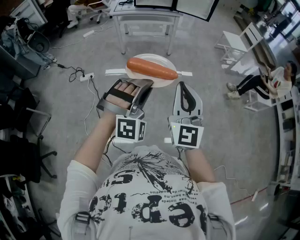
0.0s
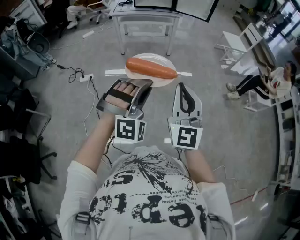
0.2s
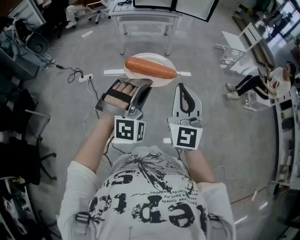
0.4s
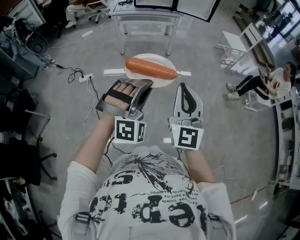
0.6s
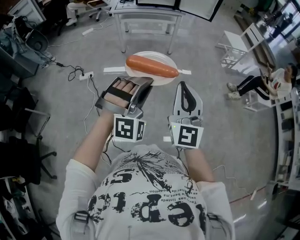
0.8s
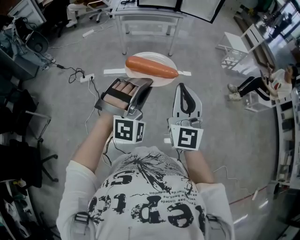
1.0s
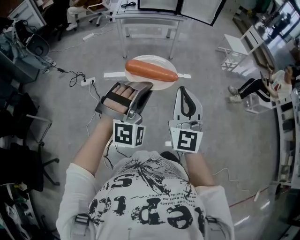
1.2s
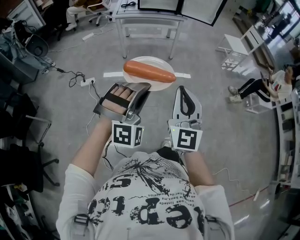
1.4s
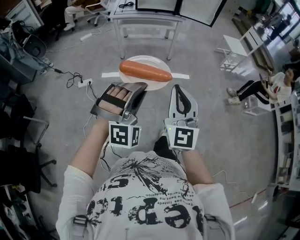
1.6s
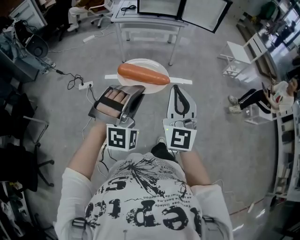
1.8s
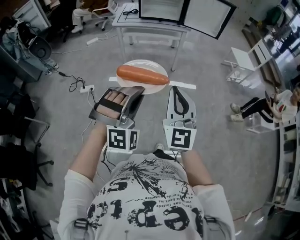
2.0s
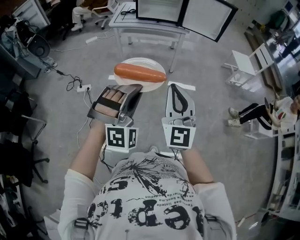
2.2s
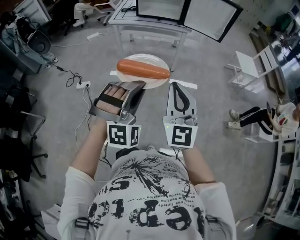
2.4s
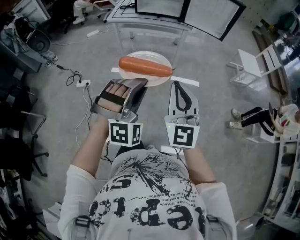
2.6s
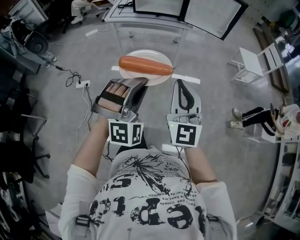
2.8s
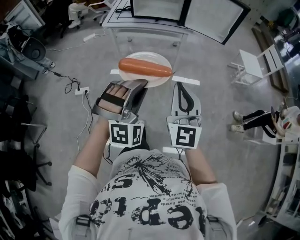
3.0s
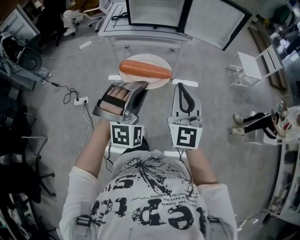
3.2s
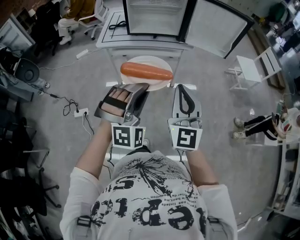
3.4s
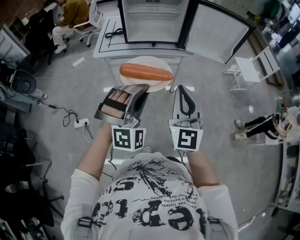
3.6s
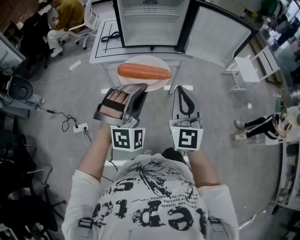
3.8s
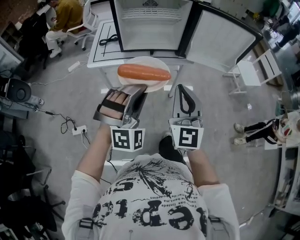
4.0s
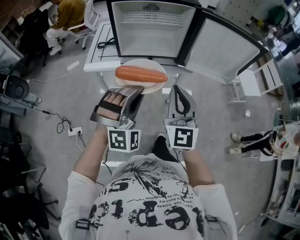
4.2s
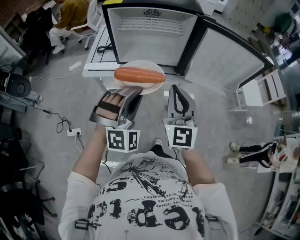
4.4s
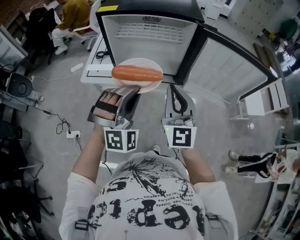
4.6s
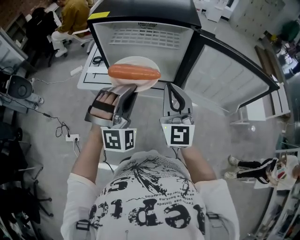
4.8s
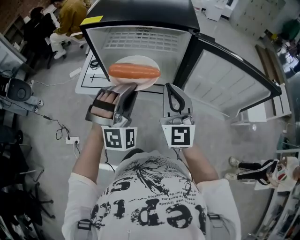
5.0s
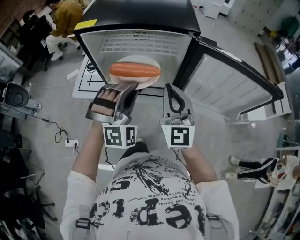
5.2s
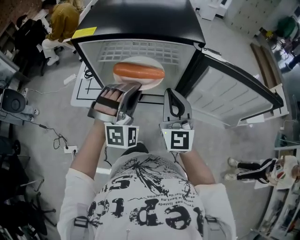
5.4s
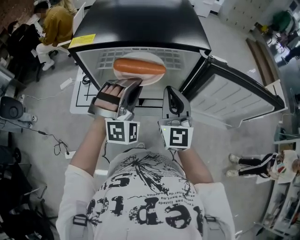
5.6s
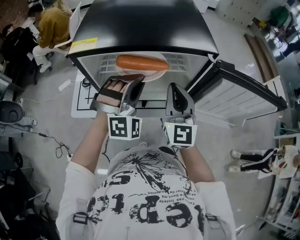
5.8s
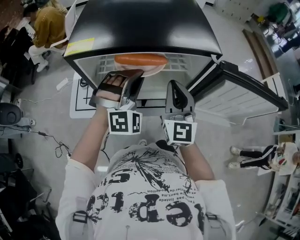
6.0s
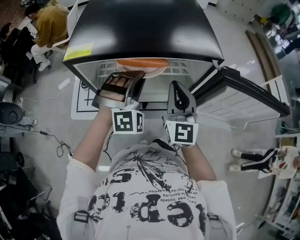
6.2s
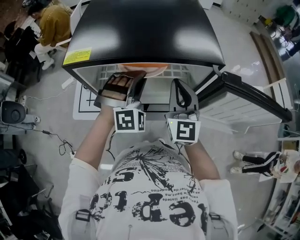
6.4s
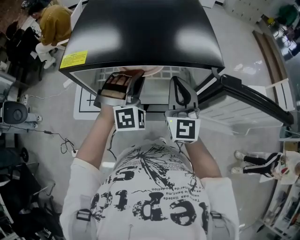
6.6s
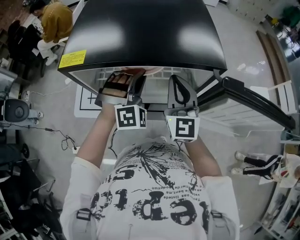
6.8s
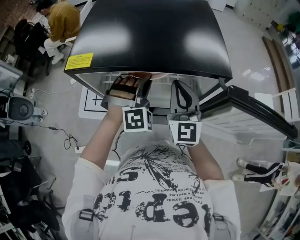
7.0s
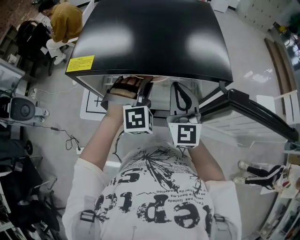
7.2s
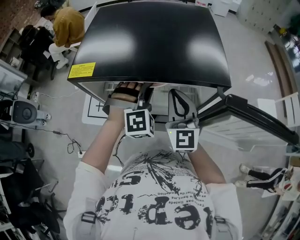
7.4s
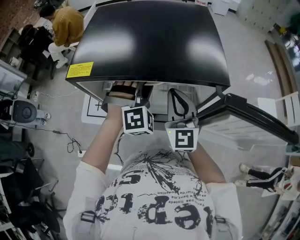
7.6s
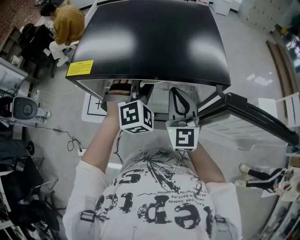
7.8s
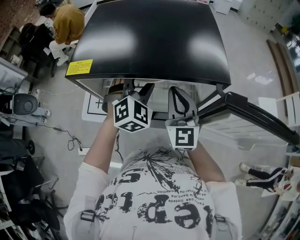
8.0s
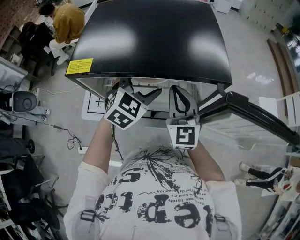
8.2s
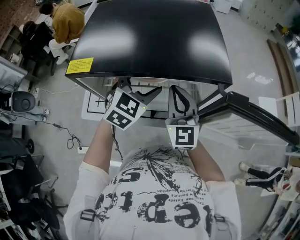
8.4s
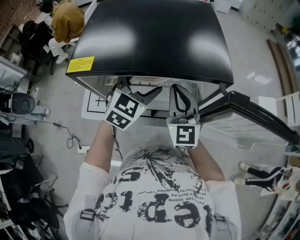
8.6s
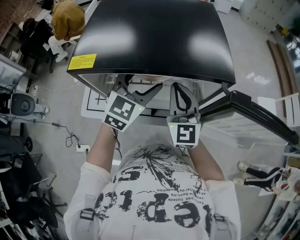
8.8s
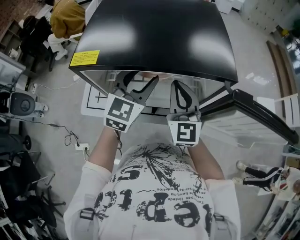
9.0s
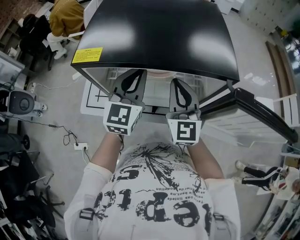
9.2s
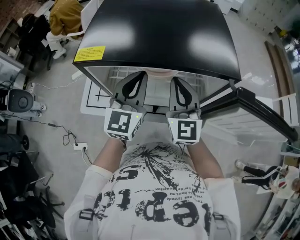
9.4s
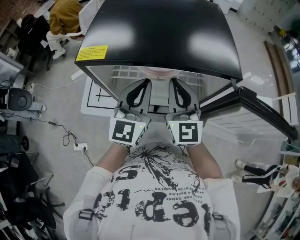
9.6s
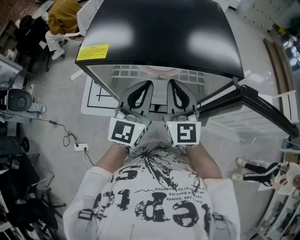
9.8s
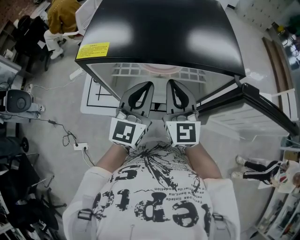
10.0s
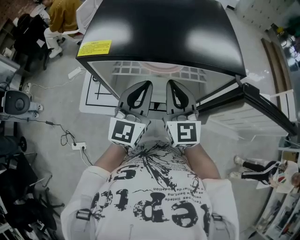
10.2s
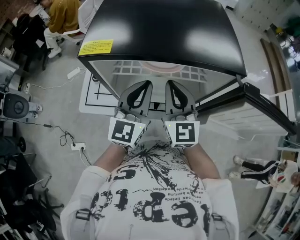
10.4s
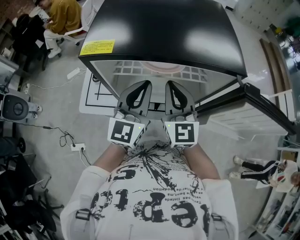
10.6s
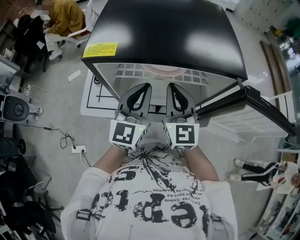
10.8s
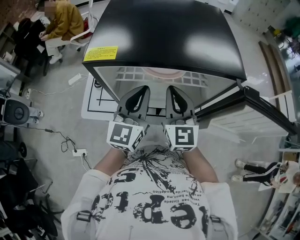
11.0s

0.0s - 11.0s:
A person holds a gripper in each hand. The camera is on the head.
0.0s - 1.6s: Both grippers move to the left and forward, roughly 10 cm.
1.6s - 3.2s: Both grippers are carried forward, about 40 cm.
3.2s - 4.8s: Both grippers are carried forward, roughly 50 cm.
4.8s - 6.2s: The two grippers go about 20 cm forward.
6.2s - 7.8s: The right gripper moves about 5 cm. Meanwhile the left gripper shifts about 5 cm forward, and opens up.
7.8s - 9.4s: The left gripper moves upward and to the left, about 10 cm, twists roughly 60 degrees counterclockwise, seen from behind, and closes up.
9.4s - 11.0s: There are only small adjustments of the grippers.

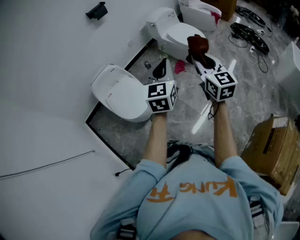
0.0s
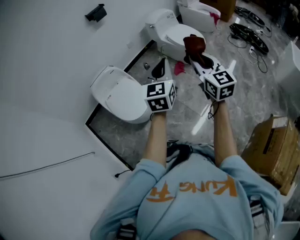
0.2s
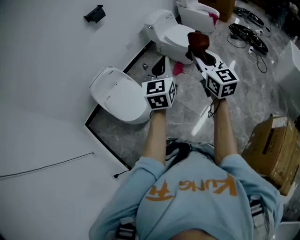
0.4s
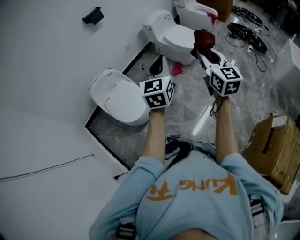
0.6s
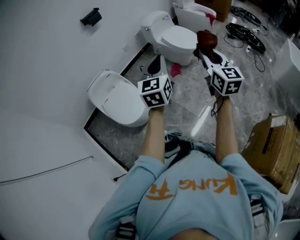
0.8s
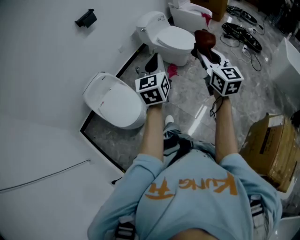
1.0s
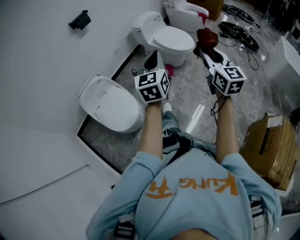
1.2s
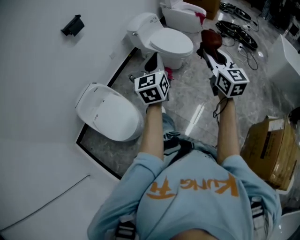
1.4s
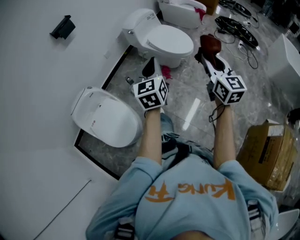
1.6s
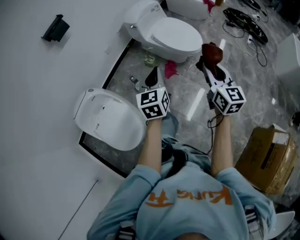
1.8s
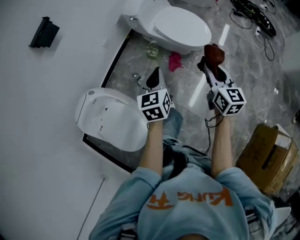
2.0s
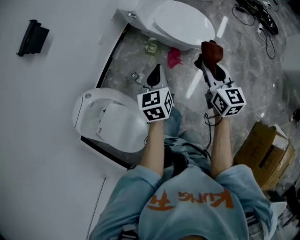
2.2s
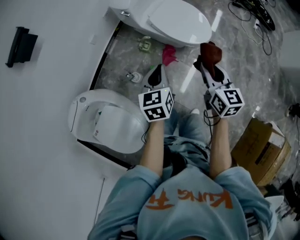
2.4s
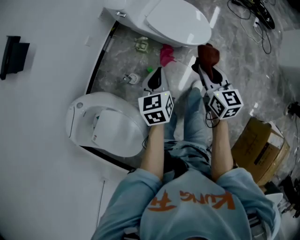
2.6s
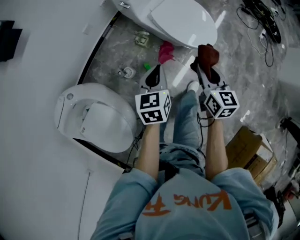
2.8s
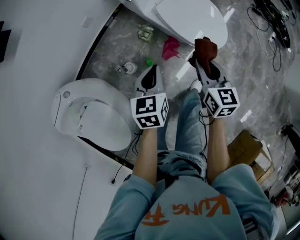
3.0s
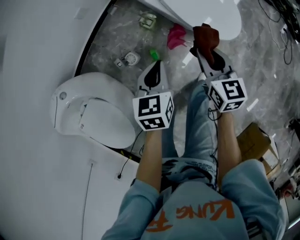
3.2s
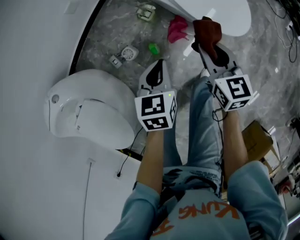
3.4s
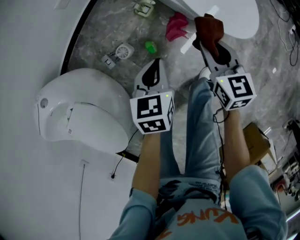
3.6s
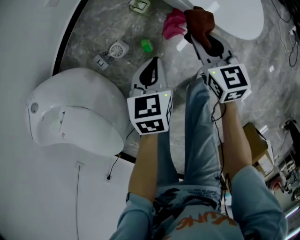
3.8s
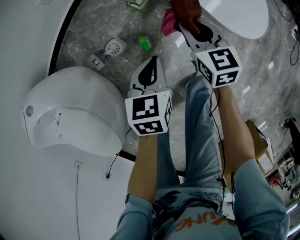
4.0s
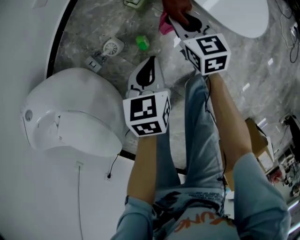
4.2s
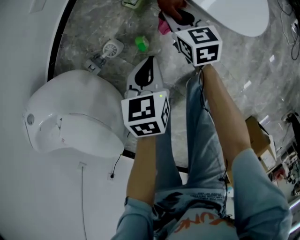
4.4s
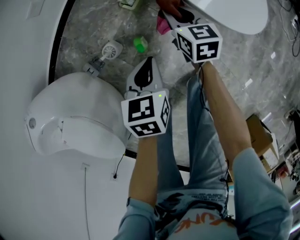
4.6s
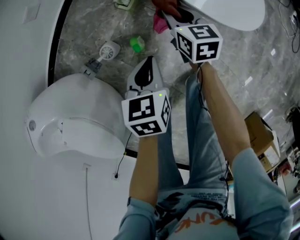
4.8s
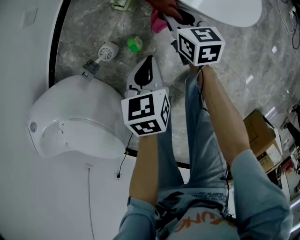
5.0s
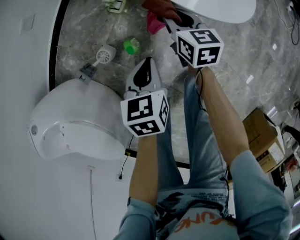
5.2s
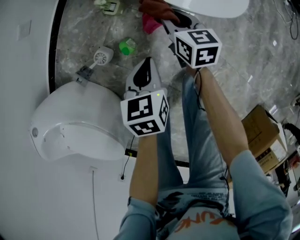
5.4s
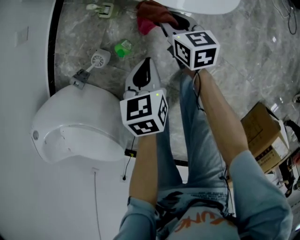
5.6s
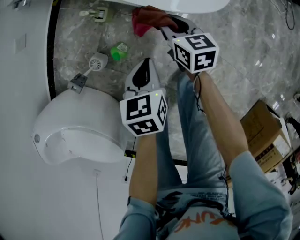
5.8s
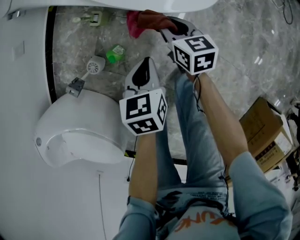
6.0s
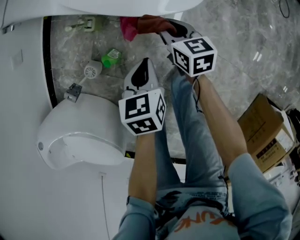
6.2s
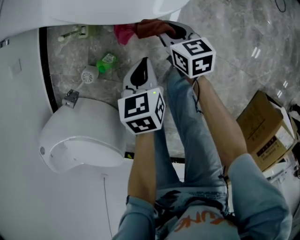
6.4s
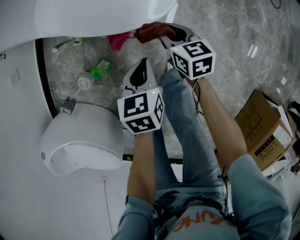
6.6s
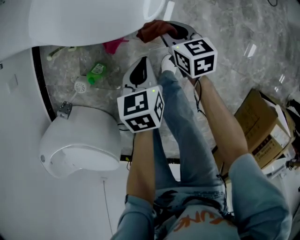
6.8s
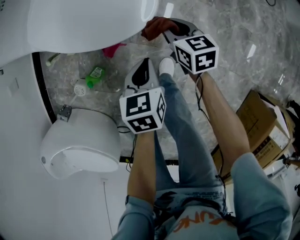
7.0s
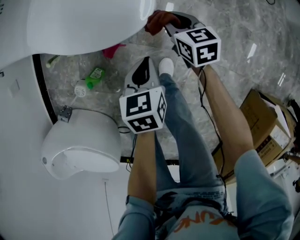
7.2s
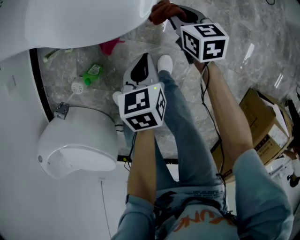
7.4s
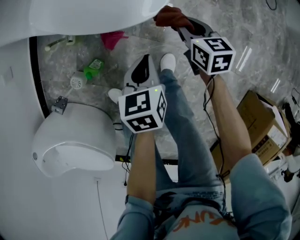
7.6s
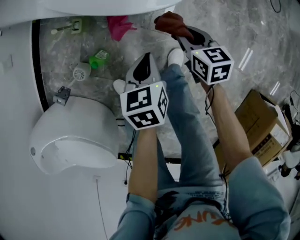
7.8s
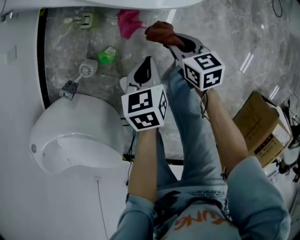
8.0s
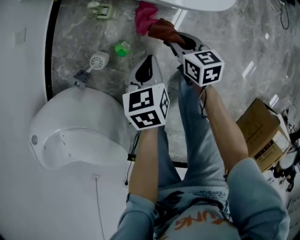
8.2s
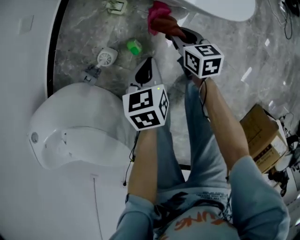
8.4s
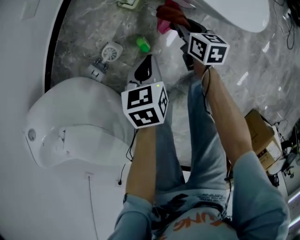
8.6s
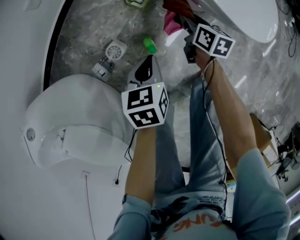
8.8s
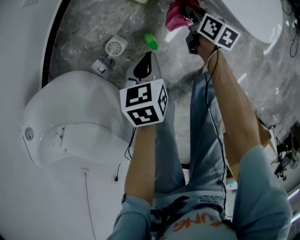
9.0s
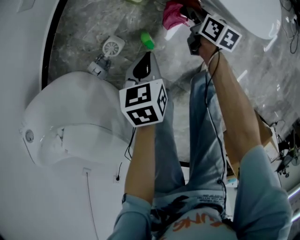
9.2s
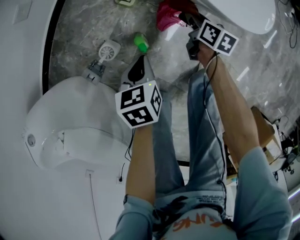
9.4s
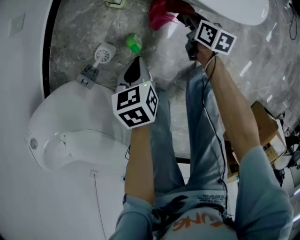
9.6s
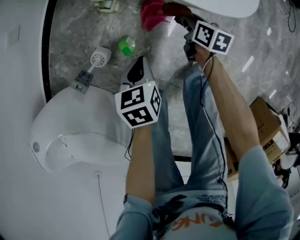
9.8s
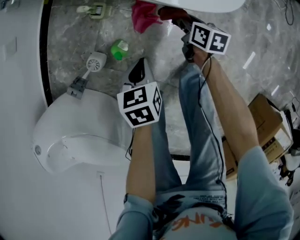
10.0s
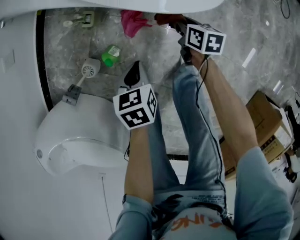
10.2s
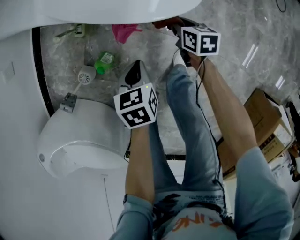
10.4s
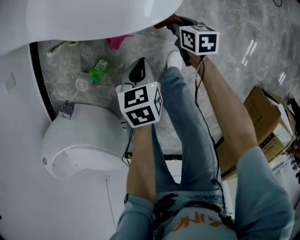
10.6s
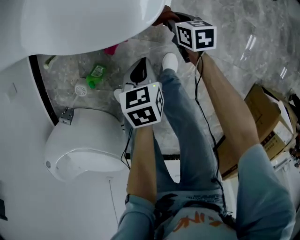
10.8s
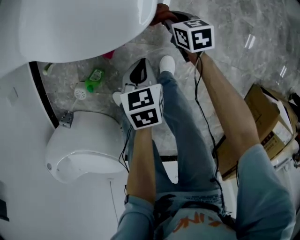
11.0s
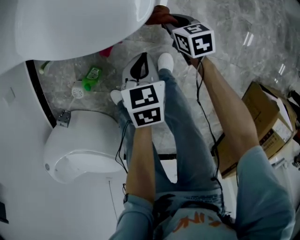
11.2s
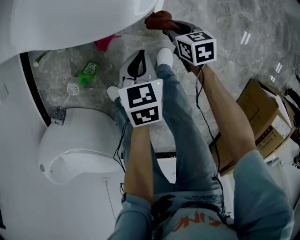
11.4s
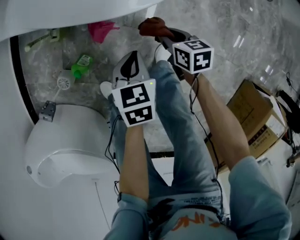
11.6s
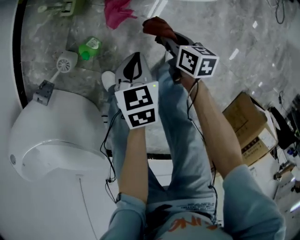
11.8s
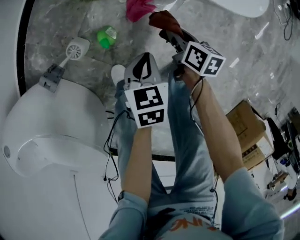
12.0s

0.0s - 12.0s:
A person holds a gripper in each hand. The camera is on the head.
0.0s - 1.6s: The left gripper goes about 25 cm forward. Meanwhile the right gripper shifts roughly 25 cm forward and to the right.
1.6s - 3.0s: The grippers both shift forward and downward by some 50 cm. The left gripper swivels roughly 30 degrees. Meanwhile the right gripper swivels roughly 30 degrees.
3.0s - 4.4s: The grippers both shift downward by approximately 30 cm.
4.4s - 6.0s: The two grippers go approximately 15 cm to the right.
6.0s - 7.6s: The grippers both shift to the right by roughly 15 cm.
7.6s - 9.0s: Both grippers move to the left, approximately 35 cm.
9.0s - 10.4s: The two grippers go approximately 25 cm to the right.
10.4s - 12.0s: The left gripper goes roughly 10 cm downward and backward, and reaches some 15 cm to the right, then returns; the right gripper moves to the left and backward, approximately 15 cm.

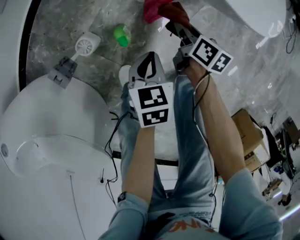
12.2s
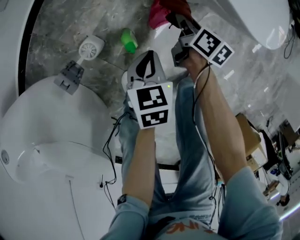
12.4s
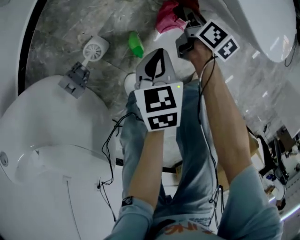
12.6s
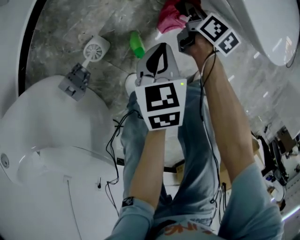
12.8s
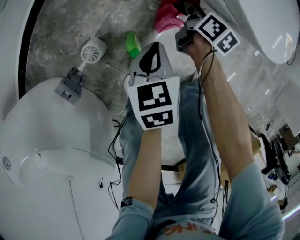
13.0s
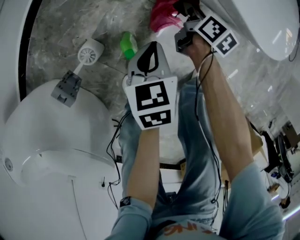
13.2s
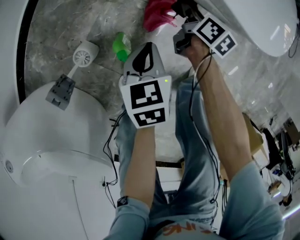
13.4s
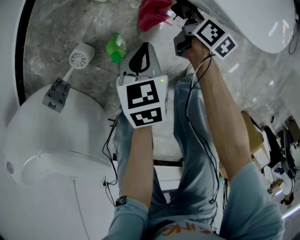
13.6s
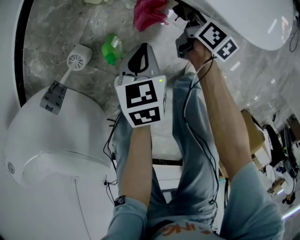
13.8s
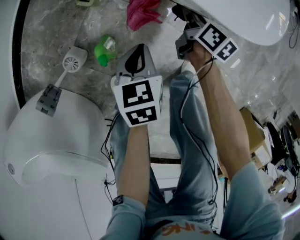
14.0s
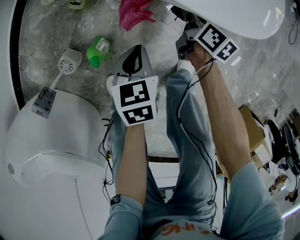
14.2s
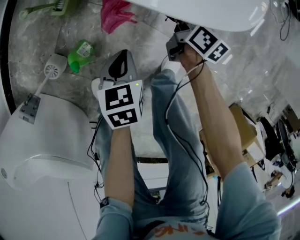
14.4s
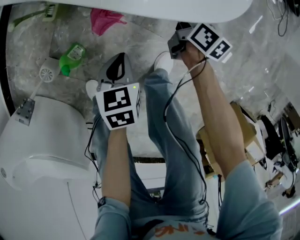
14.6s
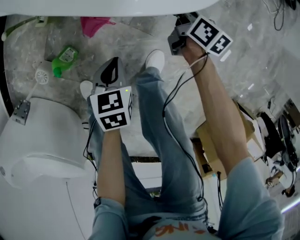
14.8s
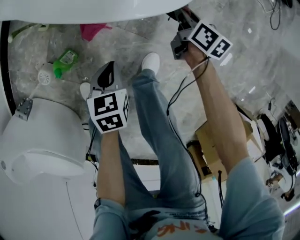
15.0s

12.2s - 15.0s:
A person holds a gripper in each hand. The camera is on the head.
12.2s - 13.6s: The right gripper is displaced forward and downward by some 10 cm; the left gripper moves forward, about 5 cm.
13.6s - 15.0s: Both grippers travel together to the right, some 20 cm.
